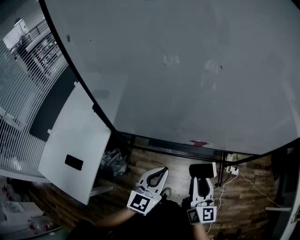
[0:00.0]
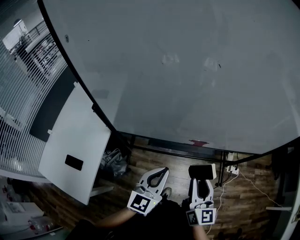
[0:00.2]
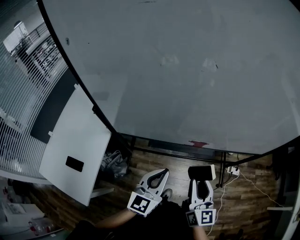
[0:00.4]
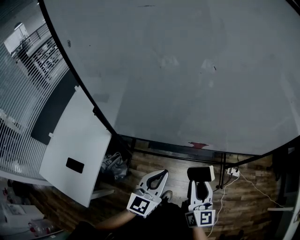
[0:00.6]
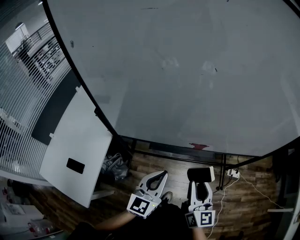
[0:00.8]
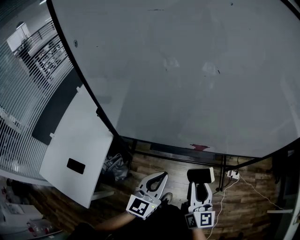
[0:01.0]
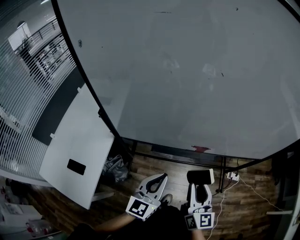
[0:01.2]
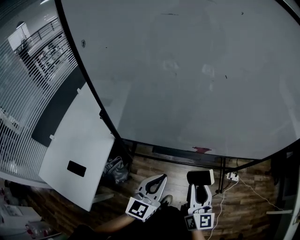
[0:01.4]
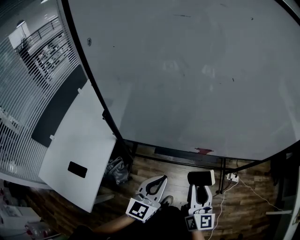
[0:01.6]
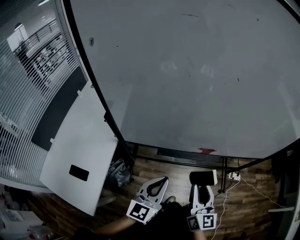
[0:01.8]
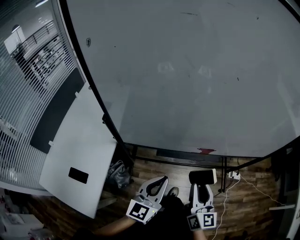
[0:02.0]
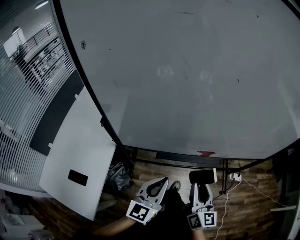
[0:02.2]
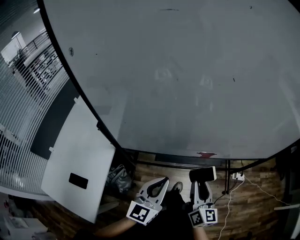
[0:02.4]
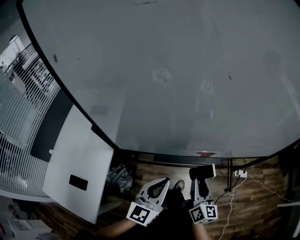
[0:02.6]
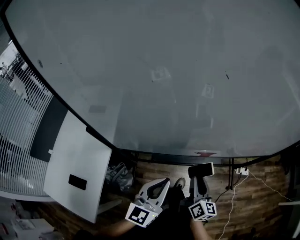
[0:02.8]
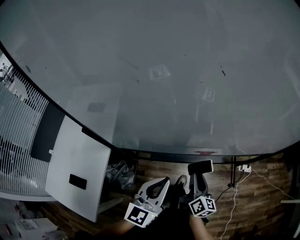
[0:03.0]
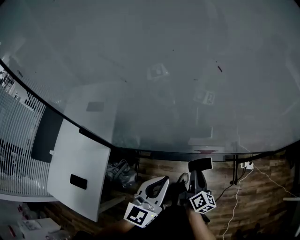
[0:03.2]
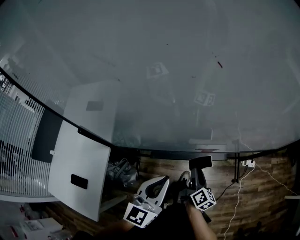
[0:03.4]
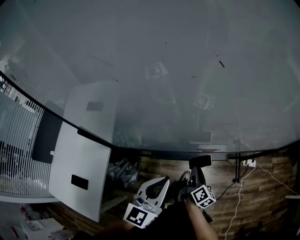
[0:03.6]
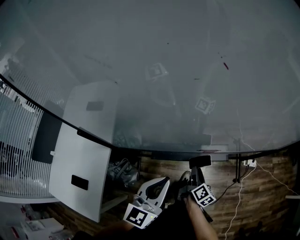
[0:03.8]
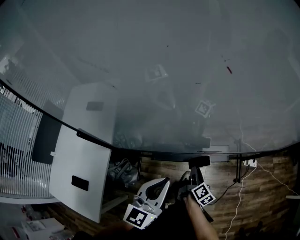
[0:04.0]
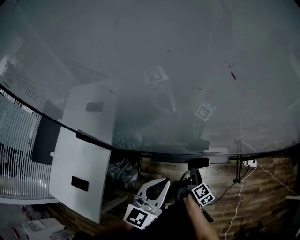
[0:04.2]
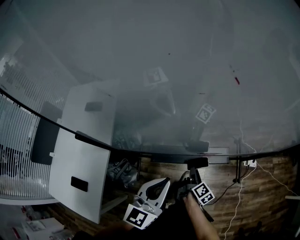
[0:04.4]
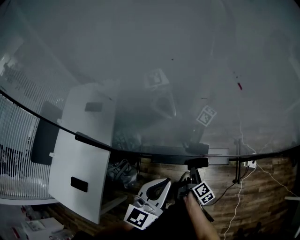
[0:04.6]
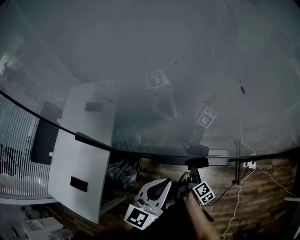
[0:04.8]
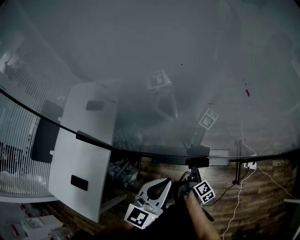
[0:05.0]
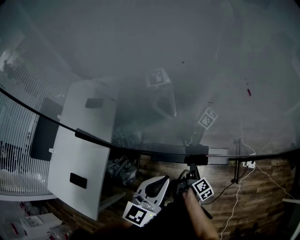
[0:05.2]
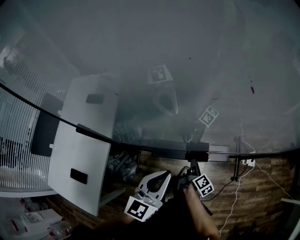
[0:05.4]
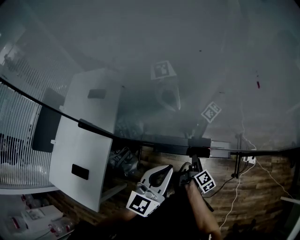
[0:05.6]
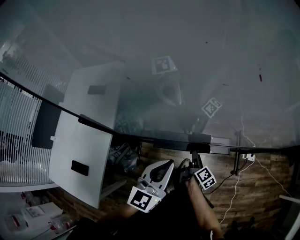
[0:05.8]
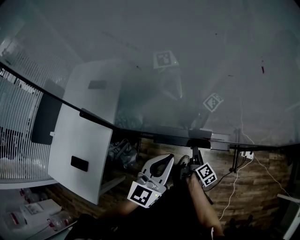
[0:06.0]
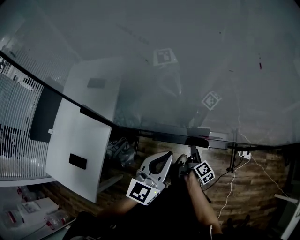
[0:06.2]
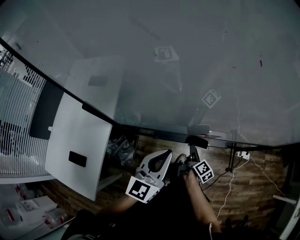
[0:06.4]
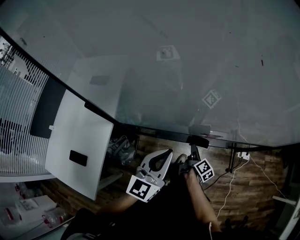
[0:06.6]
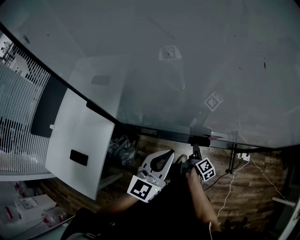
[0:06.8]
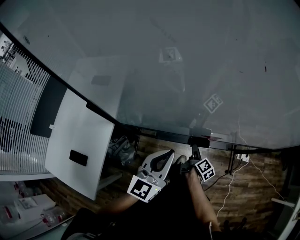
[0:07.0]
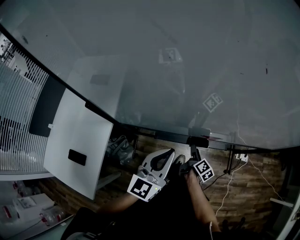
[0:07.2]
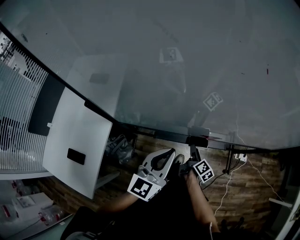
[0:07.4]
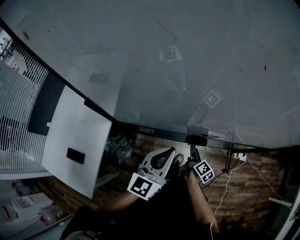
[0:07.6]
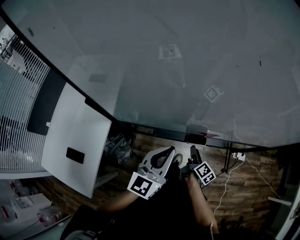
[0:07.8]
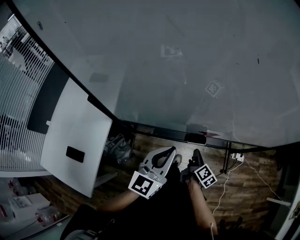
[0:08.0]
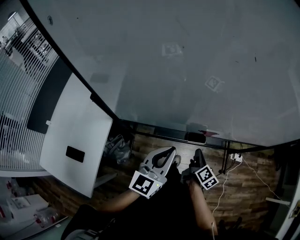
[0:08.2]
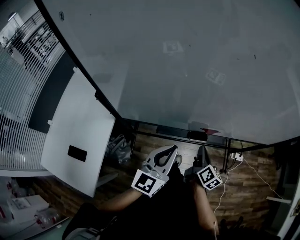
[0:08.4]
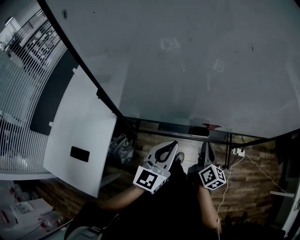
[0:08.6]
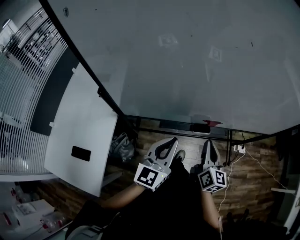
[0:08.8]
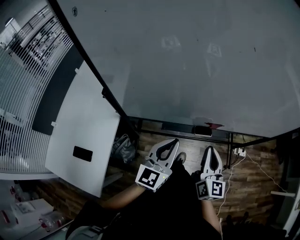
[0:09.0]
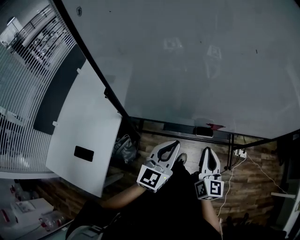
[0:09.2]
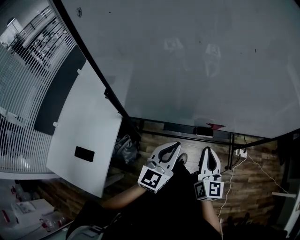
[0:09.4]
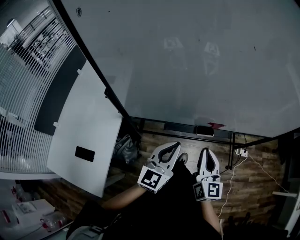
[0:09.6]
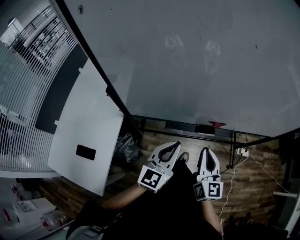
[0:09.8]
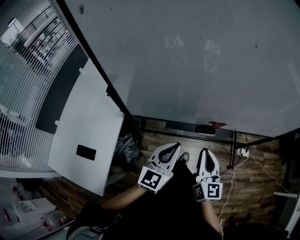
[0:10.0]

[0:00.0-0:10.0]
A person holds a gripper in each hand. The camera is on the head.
0:00.0 to 0:01.4: The grippers make only small movements.
0:01.4 to 0:02.8: The left gripper is displaced forward by approximately 5 cm, while the right gripper is displaced downward and forward by about 15 cm, and swivels roughly 30 degrees.
0:02.8 to 0:04.2: The right gripper heads downward, covering approximately 15 cm, and rotates some 30 degrees.
0:04.2 to 0:07.2: There are only small adjustments of the grippers.
0:07.2 to 0:08.6: The right gripper goes approximately 20 cm upward, rotates roughly 30 degrees, and closes its fingers.
0:08.6 to 0:10.0: The right gripper heads backward, upward and to the left, covering about 10 cm, and changes its angle by roughly 30 degrees.

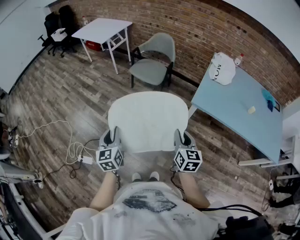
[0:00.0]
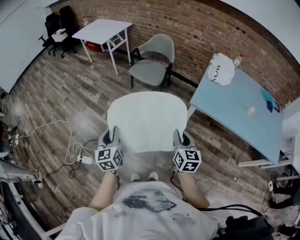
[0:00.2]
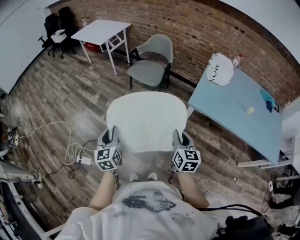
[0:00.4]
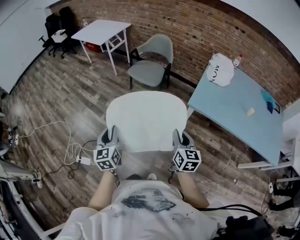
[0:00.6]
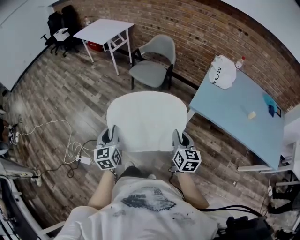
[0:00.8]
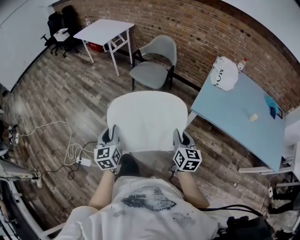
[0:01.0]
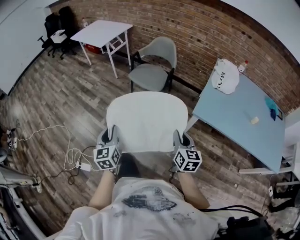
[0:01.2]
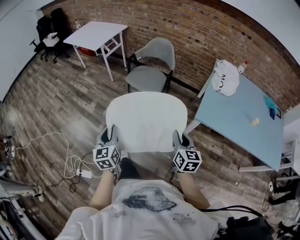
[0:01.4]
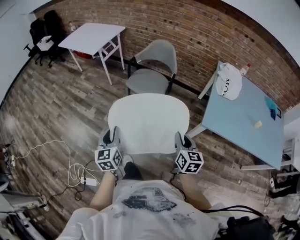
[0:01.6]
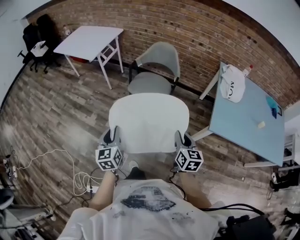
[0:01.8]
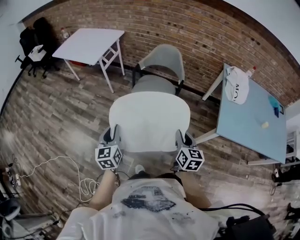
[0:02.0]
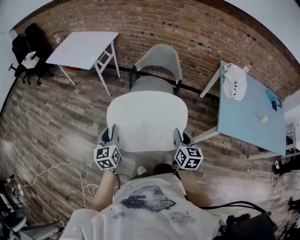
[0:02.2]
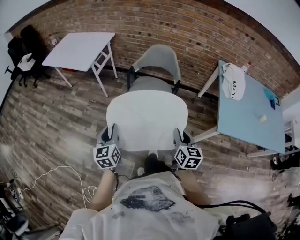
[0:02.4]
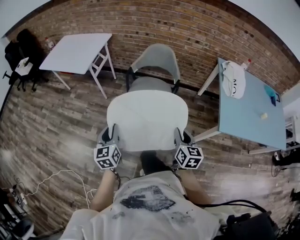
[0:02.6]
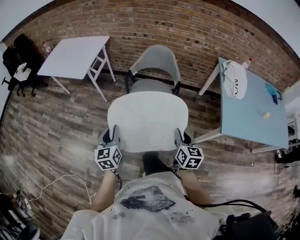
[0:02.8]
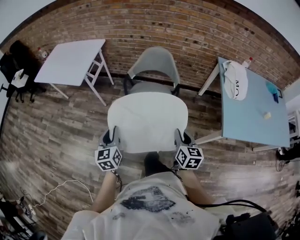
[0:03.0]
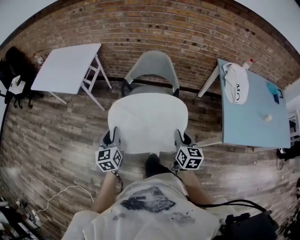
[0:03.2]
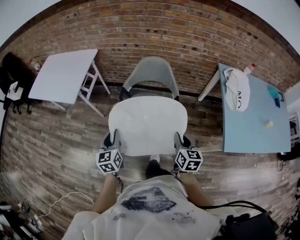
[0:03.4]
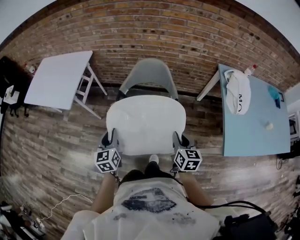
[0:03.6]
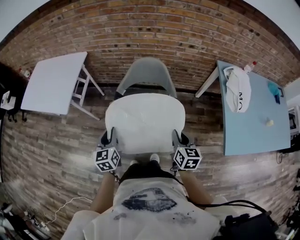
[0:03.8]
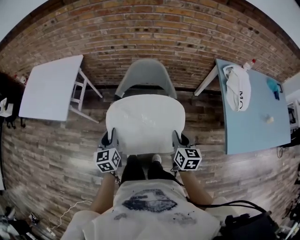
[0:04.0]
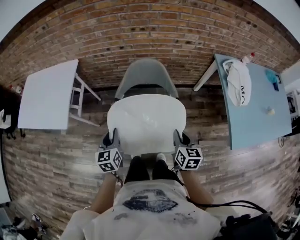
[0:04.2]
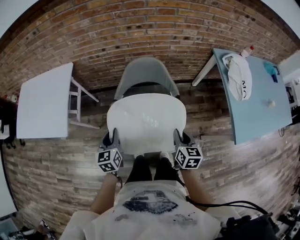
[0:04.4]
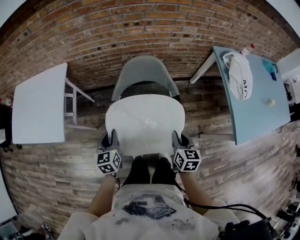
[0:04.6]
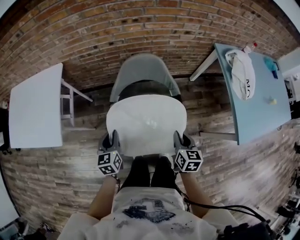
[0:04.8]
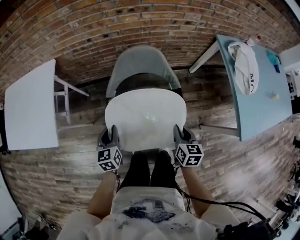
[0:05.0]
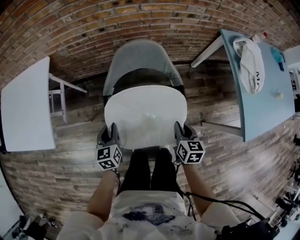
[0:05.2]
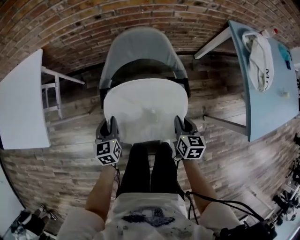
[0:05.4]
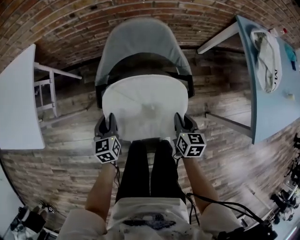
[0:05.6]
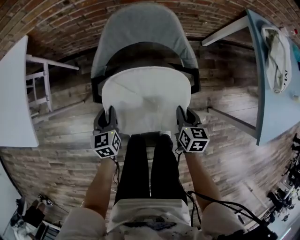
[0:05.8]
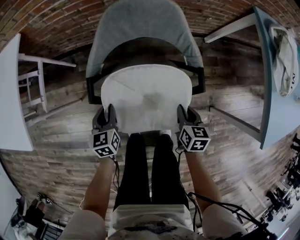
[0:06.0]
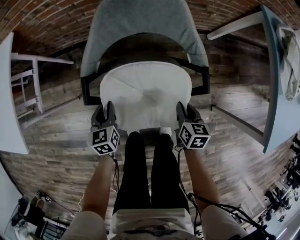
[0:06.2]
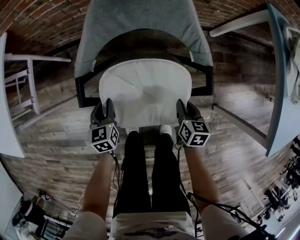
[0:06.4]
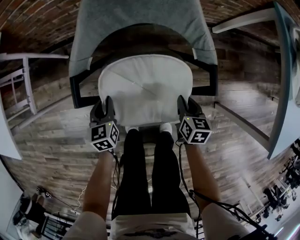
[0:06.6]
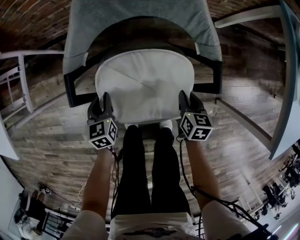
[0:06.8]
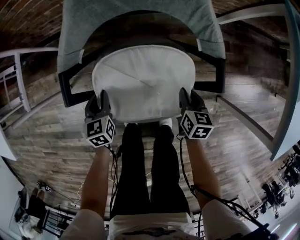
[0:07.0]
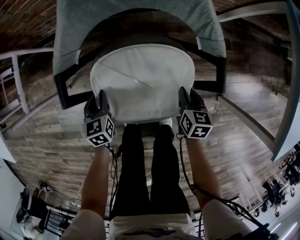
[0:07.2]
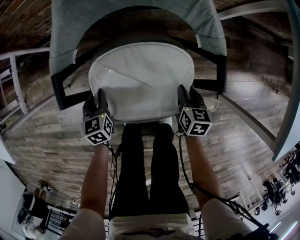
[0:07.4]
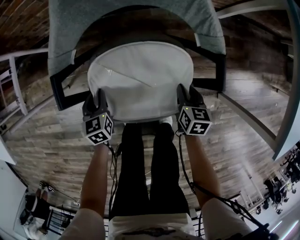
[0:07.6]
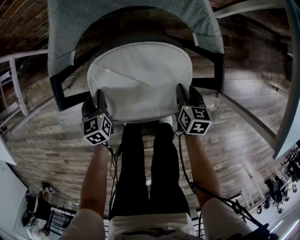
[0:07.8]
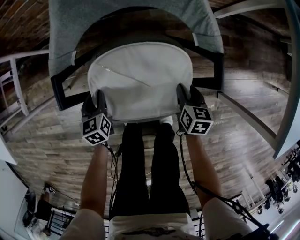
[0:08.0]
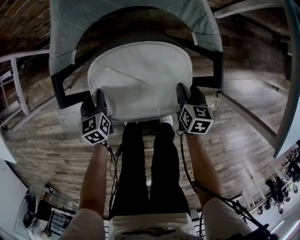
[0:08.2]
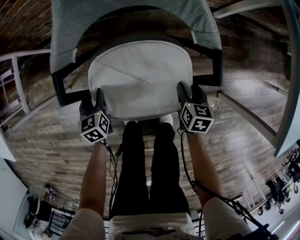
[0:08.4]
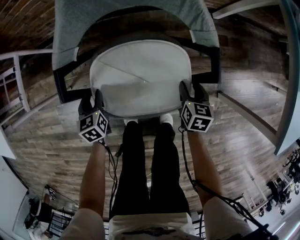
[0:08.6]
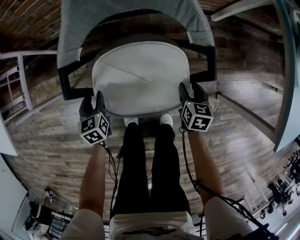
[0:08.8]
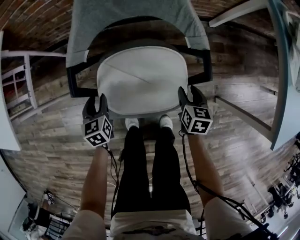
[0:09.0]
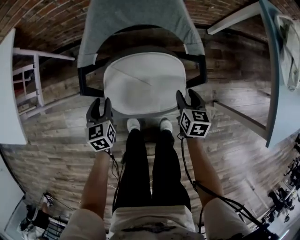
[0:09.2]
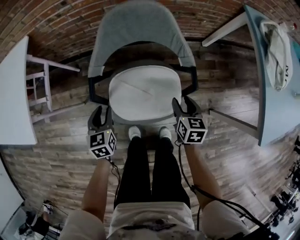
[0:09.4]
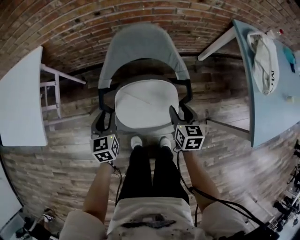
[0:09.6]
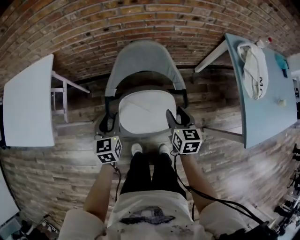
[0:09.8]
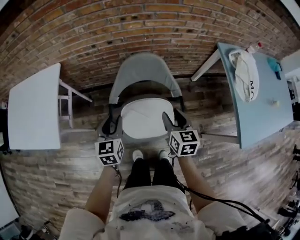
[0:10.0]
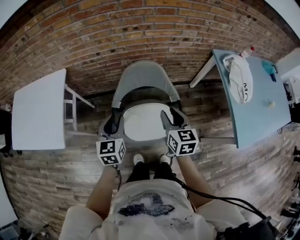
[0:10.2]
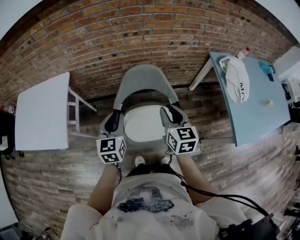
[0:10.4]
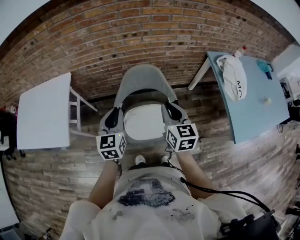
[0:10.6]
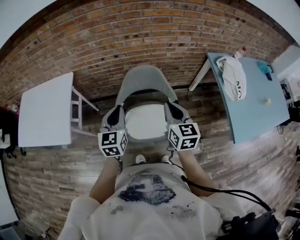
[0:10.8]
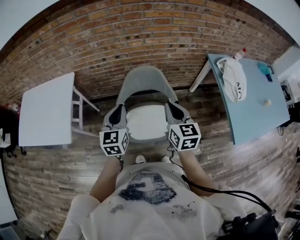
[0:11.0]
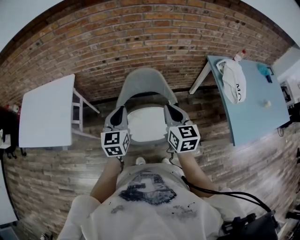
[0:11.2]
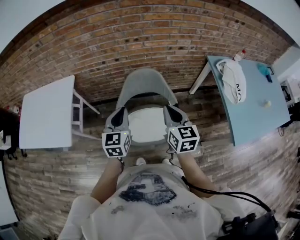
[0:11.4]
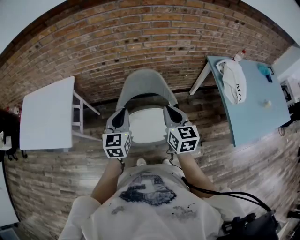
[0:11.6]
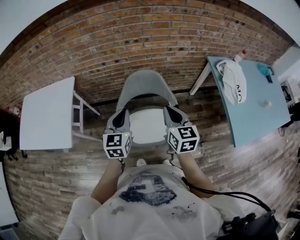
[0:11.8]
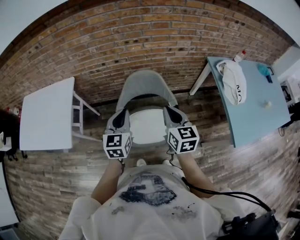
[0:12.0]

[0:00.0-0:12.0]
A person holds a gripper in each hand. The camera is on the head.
0:00.0 to 0:01.6: Both grippers travel together forward, approximately 25 cm.
0:01.6 to 0:03.0: The two grippers go about 30 cm forward and to the left.
0:03.0 to 0:04.4: Both grippers travel together forward, approximately 30 cm.
0:04.4 to 0:06.0: The grippers both shift downward by approximately 30 cm.
0:06.0 to 0:07.6: The two grippers go some 15 cm downward.
0:07.6 to 0:09.0: The two grippers go about 5 cm upward. The right gripper opens up.
0:09.0 to 0:10.4: Both grippers travel together upward, some 50 cm. The left gripper swivels approximately 30 degrees; the right gripper changes its angle by about 30 degrees.
0:10.4 to 0:12.0: The left gripper shifts by some 5 cm; the right gripper closes its fingers.

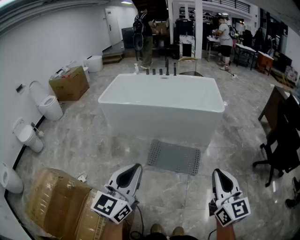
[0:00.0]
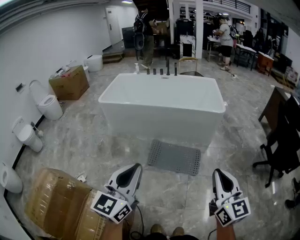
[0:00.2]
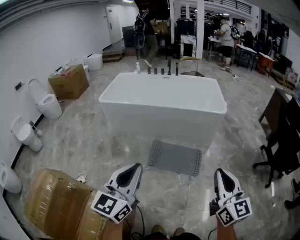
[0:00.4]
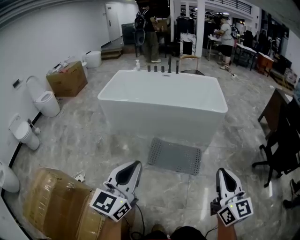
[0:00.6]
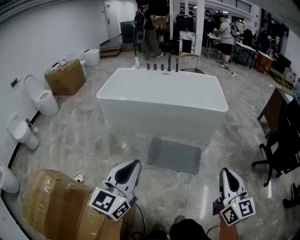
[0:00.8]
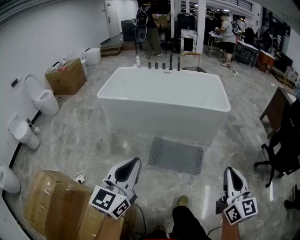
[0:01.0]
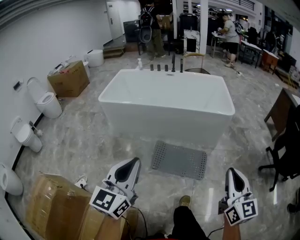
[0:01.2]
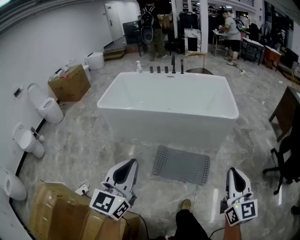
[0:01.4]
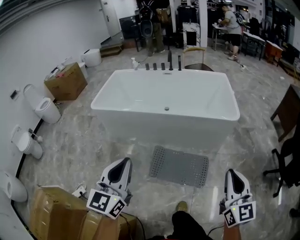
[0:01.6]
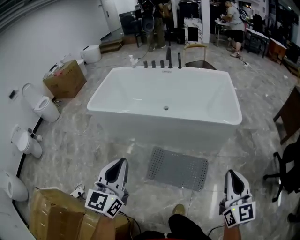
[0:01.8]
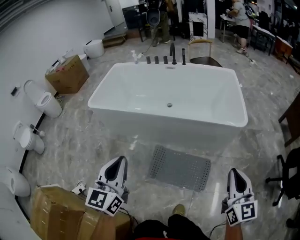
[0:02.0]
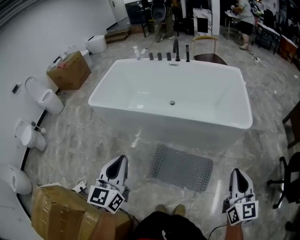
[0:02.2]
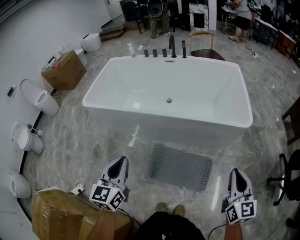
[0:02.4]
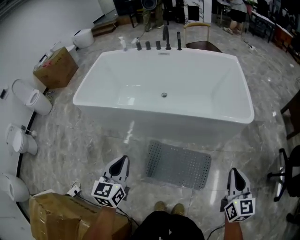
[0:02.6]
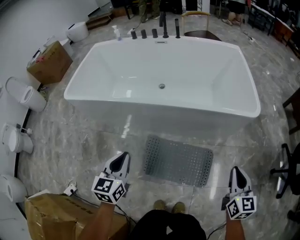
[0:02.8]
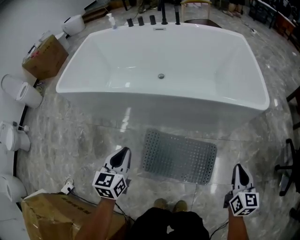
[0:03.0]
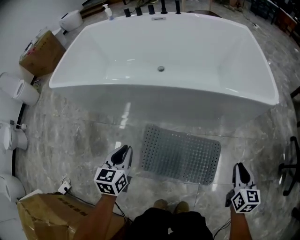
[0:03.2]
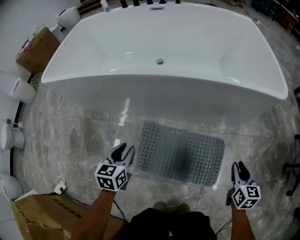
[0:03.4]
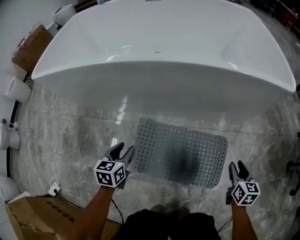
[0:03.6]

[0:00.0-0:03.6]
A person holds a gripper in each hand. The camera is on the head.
0:00.0 to 0:01.8: Both grippers move forward, roughly 35 cm.
0:01.8 to 0:03.6: Both grippers travel together downward, about 60 cm. The right gripper tilts its fingers roughly 40 degrees downward, and opens its fingers. Meanwhile the left gripper angles its fingers downward, by roughly 40 degrees, and opens up.
